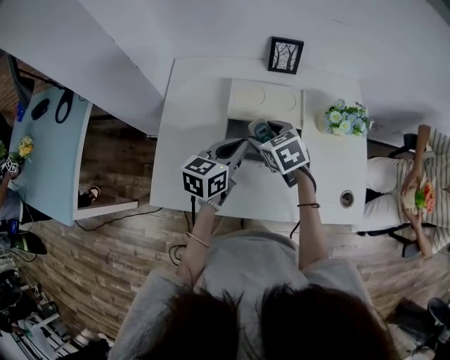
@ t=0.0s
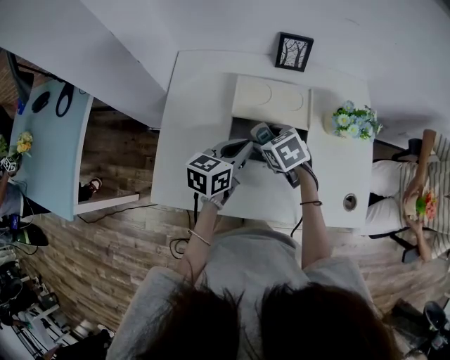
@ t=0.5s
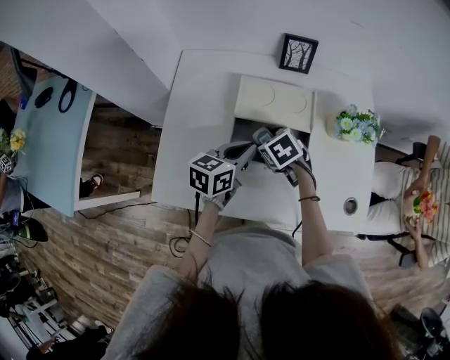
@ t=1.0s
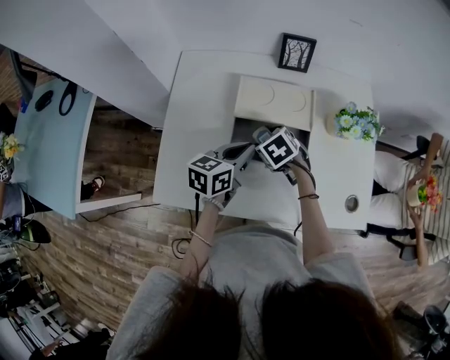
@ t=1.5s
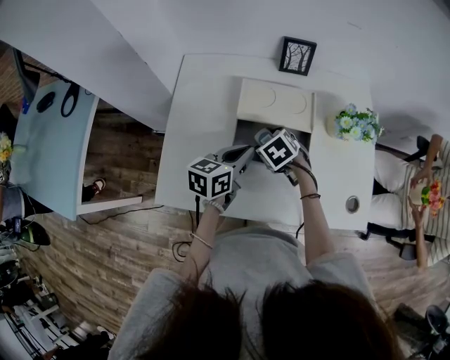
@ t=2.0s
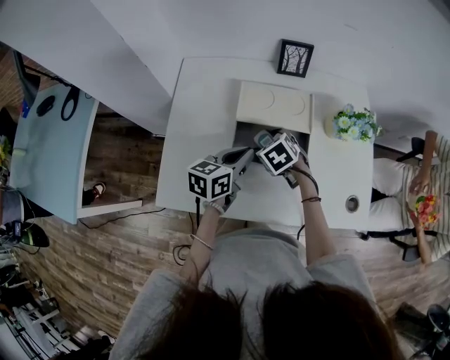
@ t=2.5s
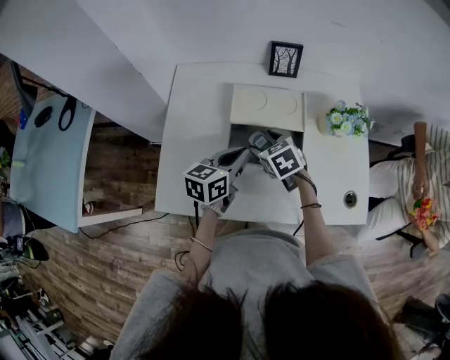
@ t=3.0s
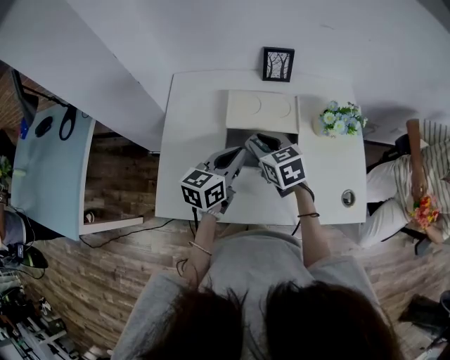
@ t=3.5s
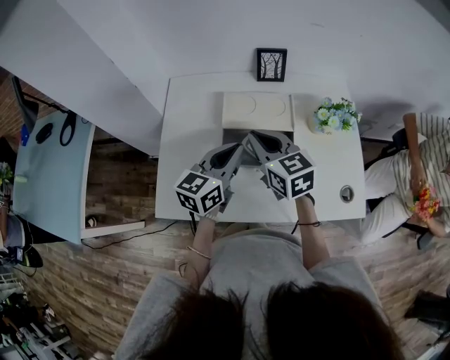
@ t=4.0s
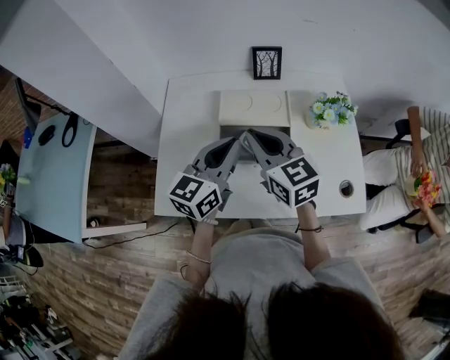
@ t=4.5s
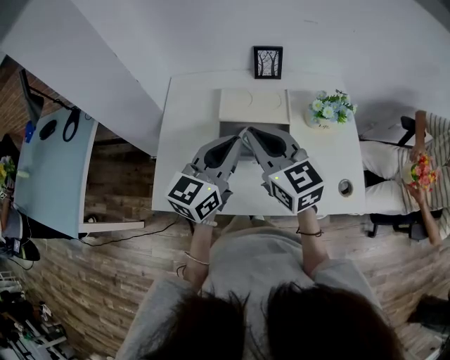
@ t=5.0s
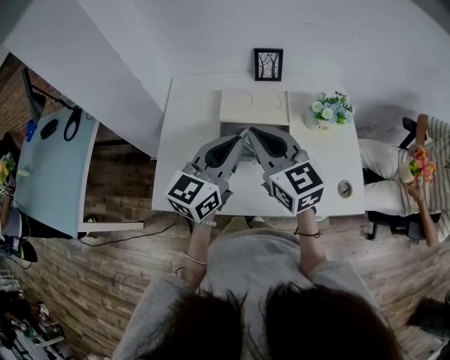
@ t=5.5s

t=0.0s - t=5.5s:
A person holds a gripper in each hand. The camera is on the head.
t=0.0s - t=2.0s: The right gripper moves downward, approximately 5 cm.
t=2.0s - t=3.5s: The right gripper moves upward, roughly 10 cm, changes its angle by about 30 degrees, and closes up.
t=3.5s - t=5.5s: Both grippers travel together upward and backward, some 15 cm. The left gripper swivels some 20 degrees; the right gripper swivels about 30 degrees.

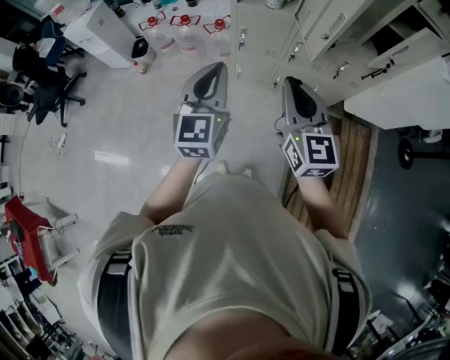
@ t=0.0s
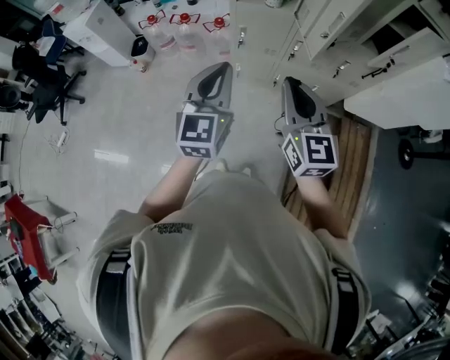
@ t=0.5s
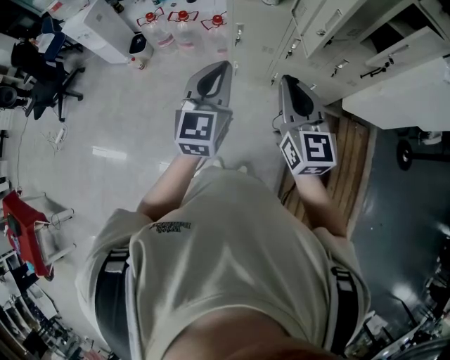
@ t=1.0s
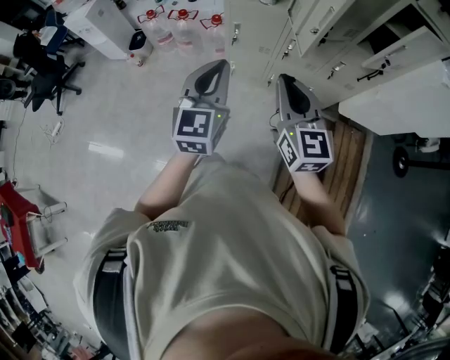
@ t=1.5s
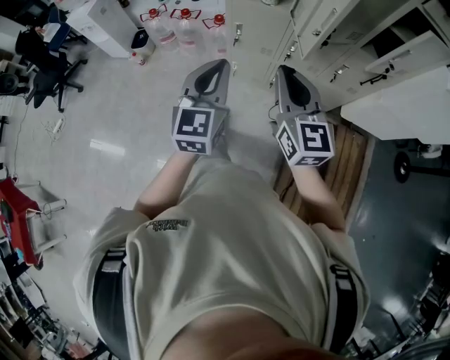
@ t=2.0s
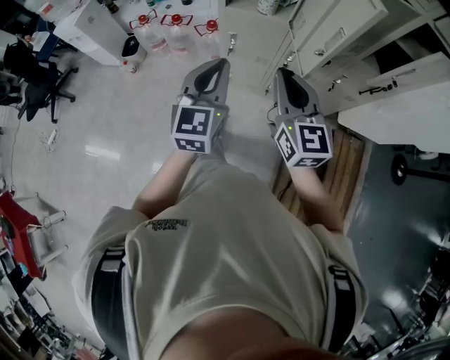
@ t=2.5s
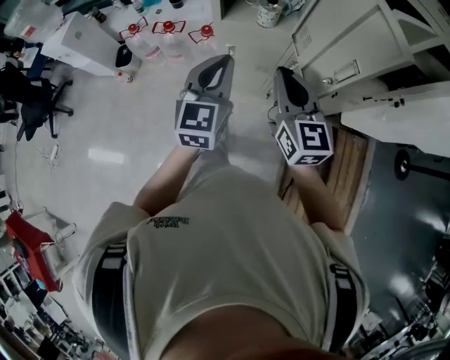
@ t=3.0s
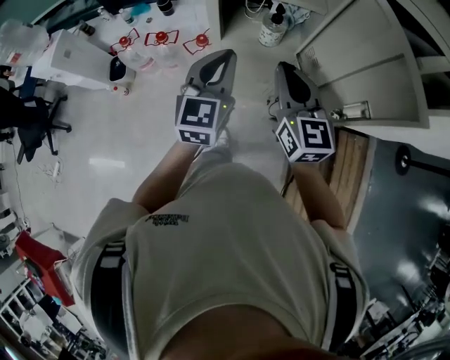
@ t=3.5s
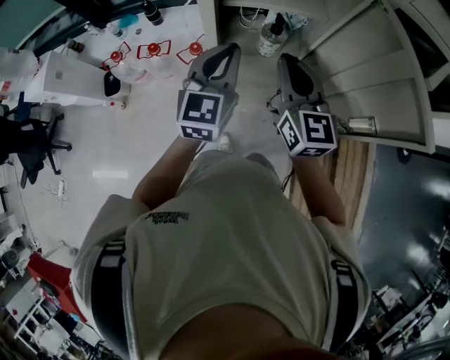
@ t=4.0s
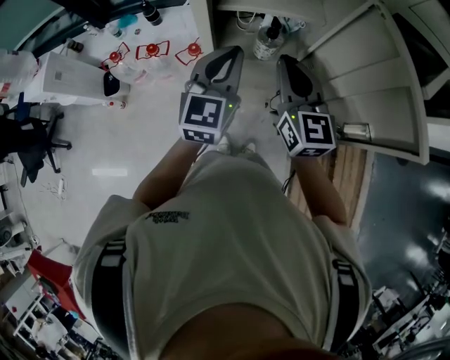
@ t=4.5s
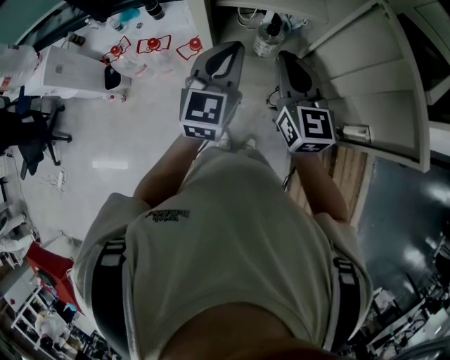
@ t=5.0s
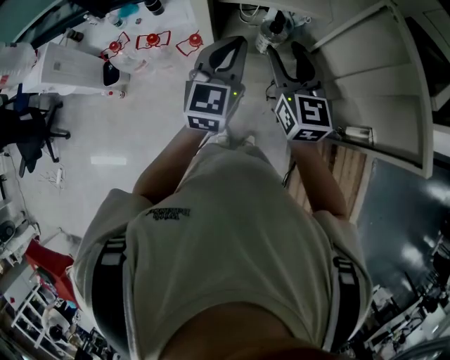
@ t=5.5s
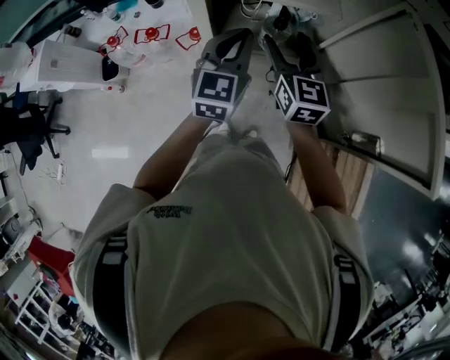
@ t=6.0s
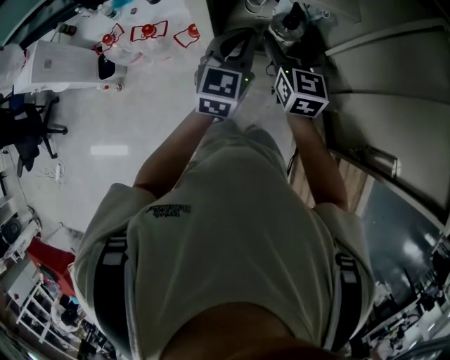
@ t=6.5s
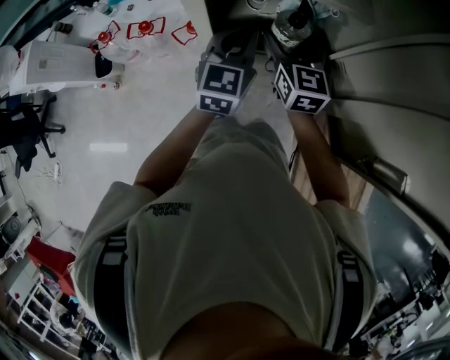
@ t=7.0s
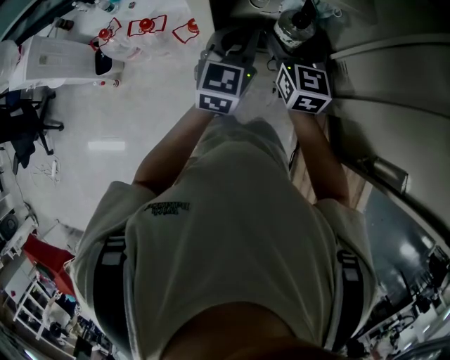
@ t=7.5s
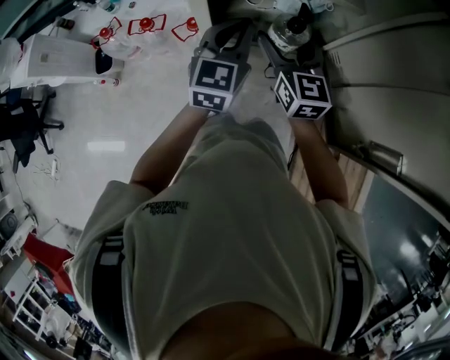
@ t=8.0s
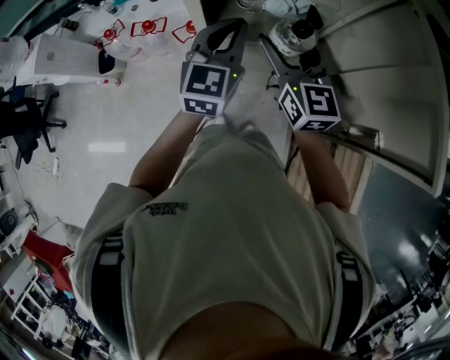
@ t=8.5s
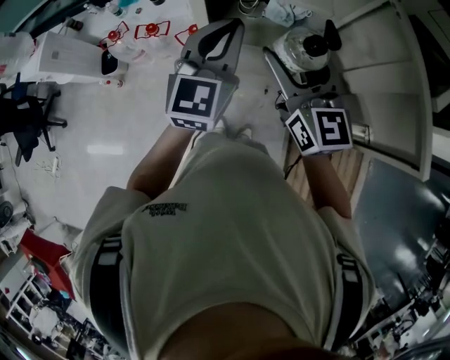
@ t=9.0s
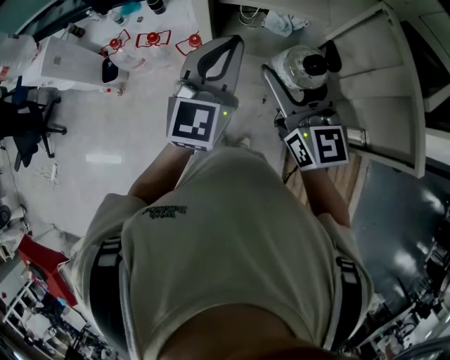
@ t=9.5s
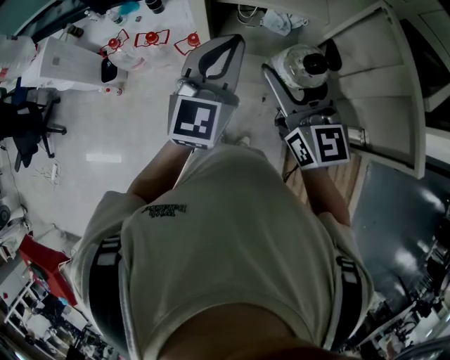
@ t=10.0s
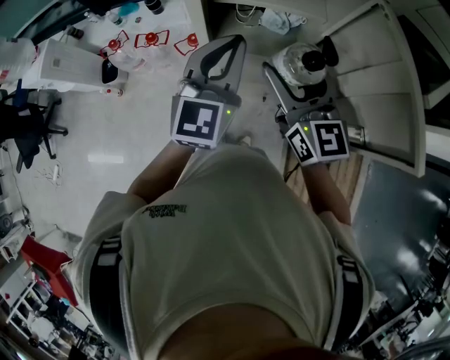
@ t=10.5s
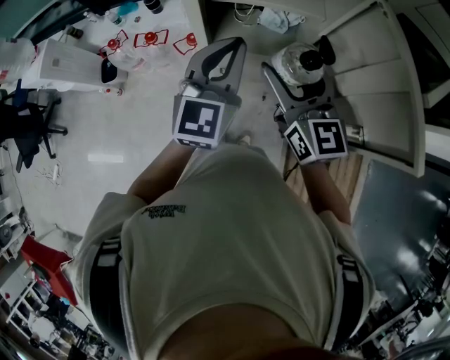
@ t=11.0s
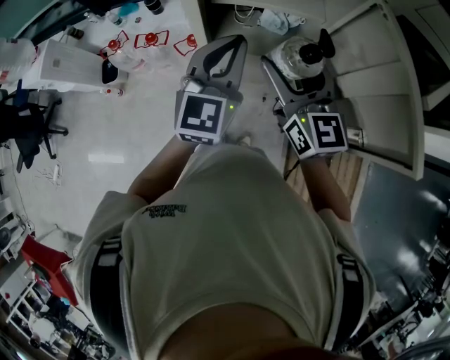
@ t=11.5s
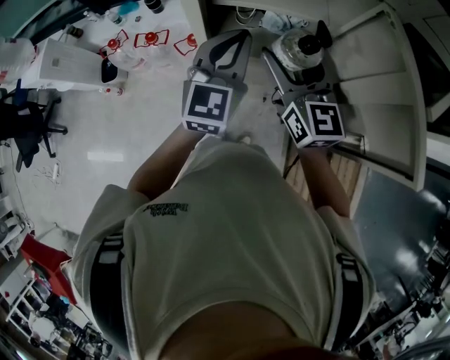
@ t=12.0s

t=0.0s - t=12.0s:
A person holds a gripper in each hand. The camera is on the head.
t=0.0s - t=2.0s: The right gripper moves approximately 5 cm; the left gripper heads to the right, covering about 5 cm.
t=2.0s - t=4.0s: Both grippers travel together forward, about 35 cm.
t=4.0s - t=6.0s: Both grippers move forward and downward, some 10 cm. The right gripper opens its fingers.
t=6.0s - t=8.0s: The grippers both shift downward by approximately 5 cm.
t=8.0s - t=10.0s: Both grippers move upward and backward, roughly 20 cm.
t=10.0s - t=12.0s: The right gripper heads forward, covering some 5 cm, while the left gripper shifts by roughly 5 cm.

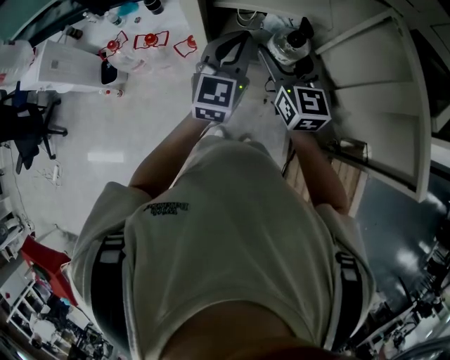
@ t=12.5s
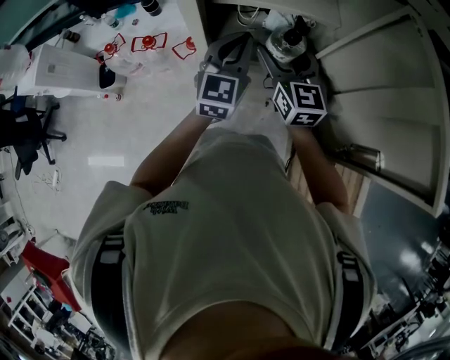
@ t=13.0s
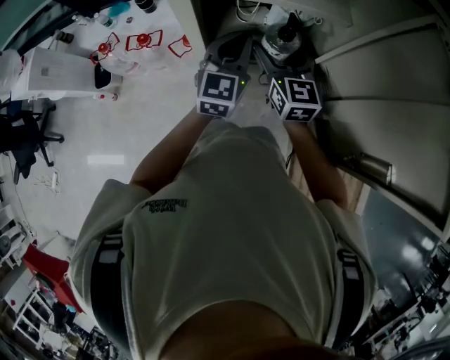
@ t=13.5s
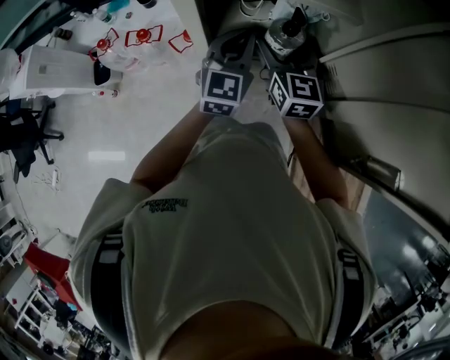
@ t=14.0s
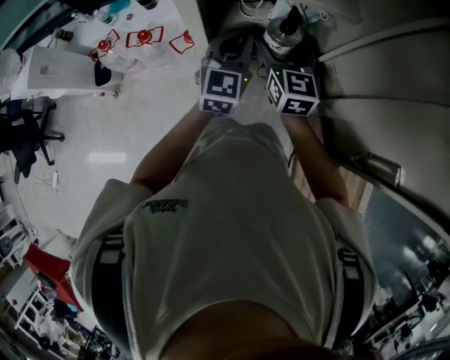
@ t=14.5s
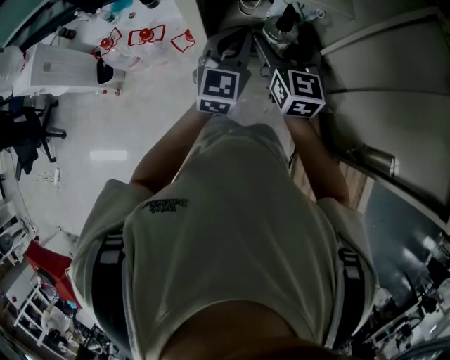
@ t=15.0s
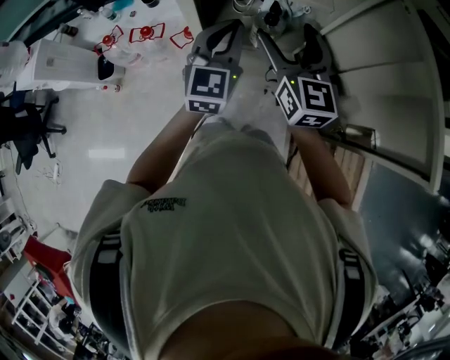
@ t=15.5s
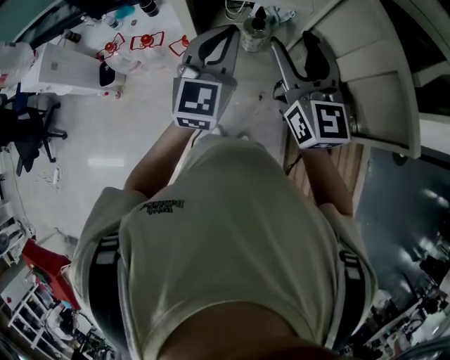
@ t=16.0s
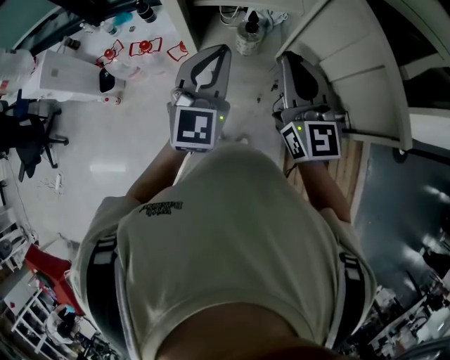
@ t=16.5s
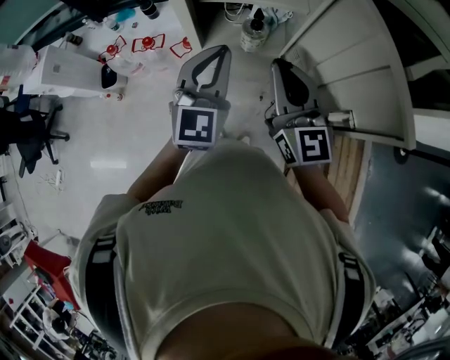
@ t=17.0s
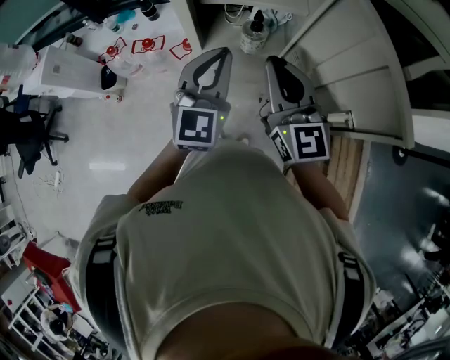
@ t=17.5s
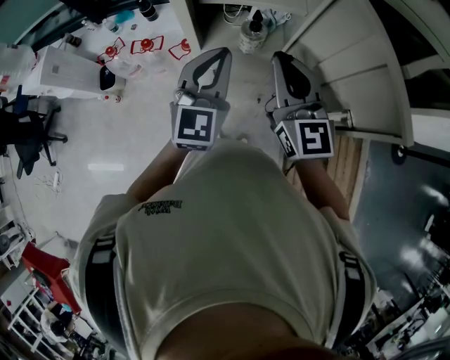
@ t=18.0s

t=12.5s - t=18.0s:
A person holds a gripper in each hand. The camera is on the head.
t=12.5s - t=14.5s: The right gripper goes approximately 10 cm downward and forward. The left gripper goes some 10 cm downward.
t=14.5s - t=16.0s: The two grippers go some 20 cm upward and backward.
t=16.0s - t=18.0s: The right gripper closes its fingers.

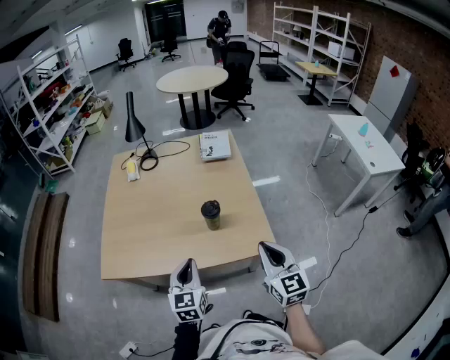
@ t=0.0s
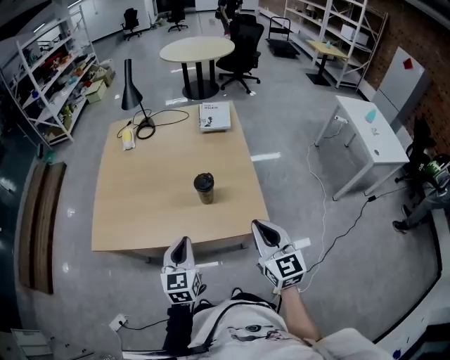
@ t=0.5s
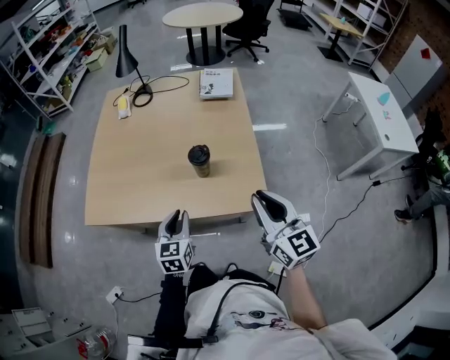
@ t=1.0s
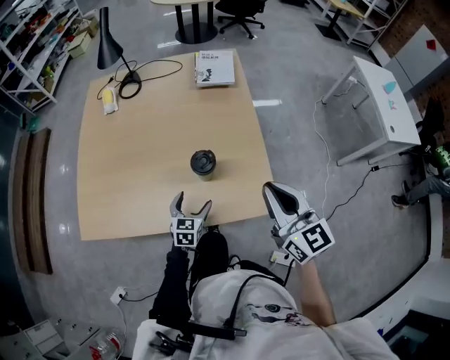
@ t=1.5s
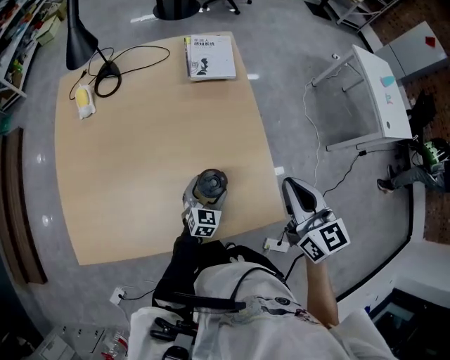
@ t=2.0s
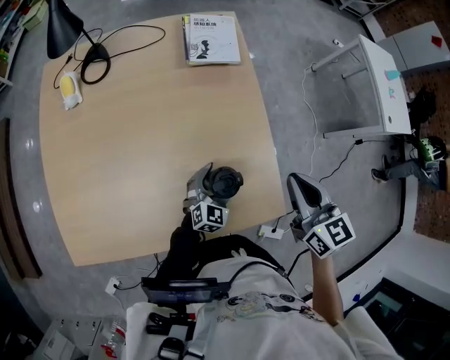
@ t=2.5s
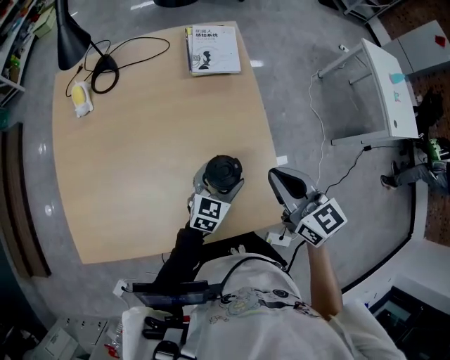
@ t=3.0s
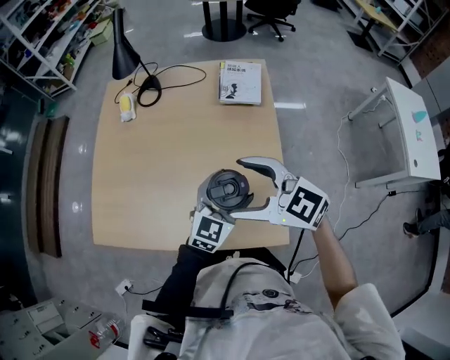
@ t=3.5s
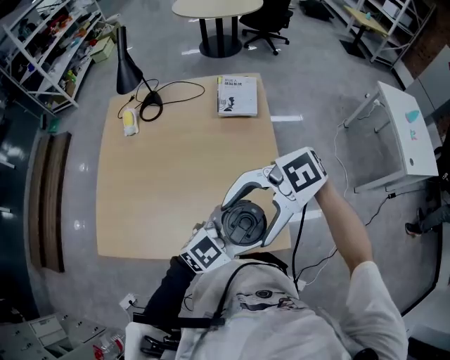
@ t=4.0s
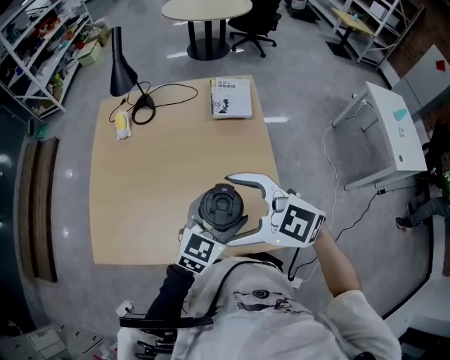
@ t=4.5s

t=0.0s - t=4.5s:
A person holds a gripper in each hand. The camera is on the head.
t=0.0s - t=2.0s: The right gripper travels forward by some 25 cm. Meanwhile the left gripper goes some 40 cm downward, forward and to the right, rotates approximately 30 degrees, and opens its fingers.
t=2.0s - t=4.5s: The left gripper shifts some 30 cm upward, while the right gripper changes place by approximately 20 cm, changes its angle by some 60 degrees, and opens.
